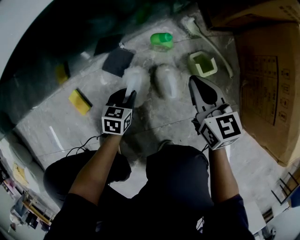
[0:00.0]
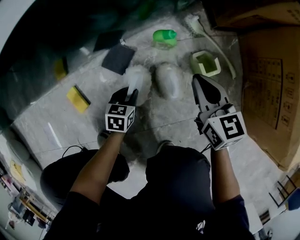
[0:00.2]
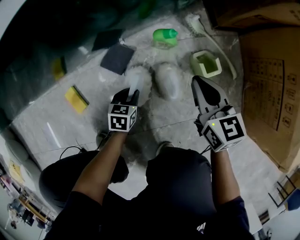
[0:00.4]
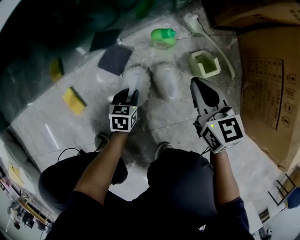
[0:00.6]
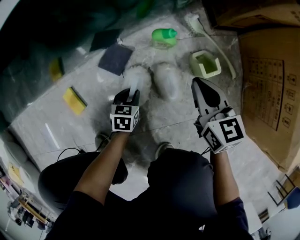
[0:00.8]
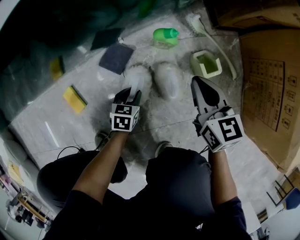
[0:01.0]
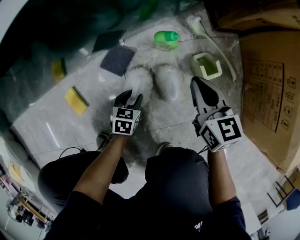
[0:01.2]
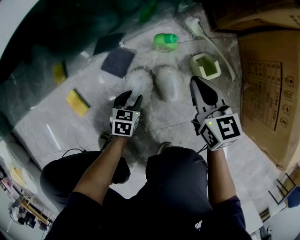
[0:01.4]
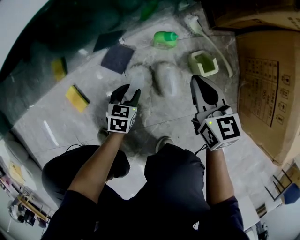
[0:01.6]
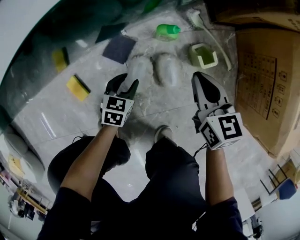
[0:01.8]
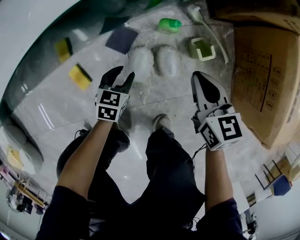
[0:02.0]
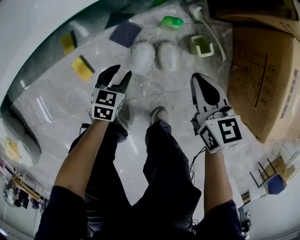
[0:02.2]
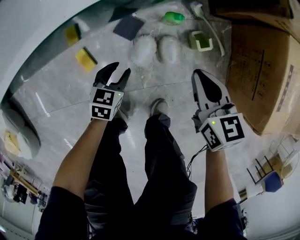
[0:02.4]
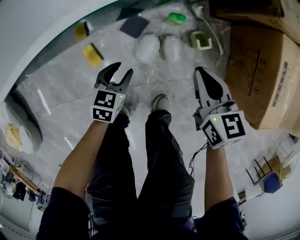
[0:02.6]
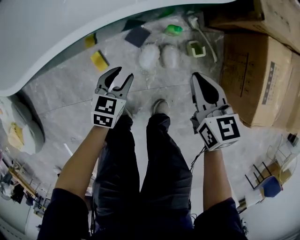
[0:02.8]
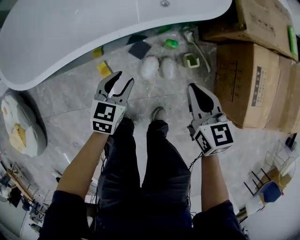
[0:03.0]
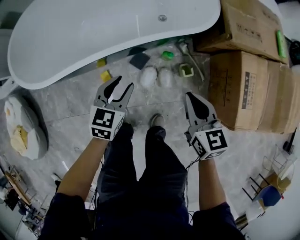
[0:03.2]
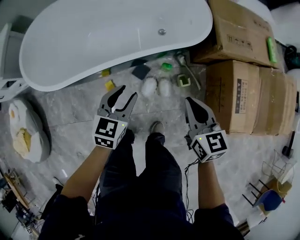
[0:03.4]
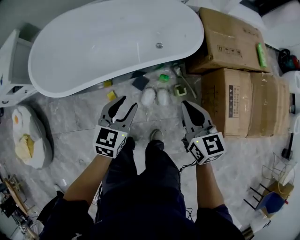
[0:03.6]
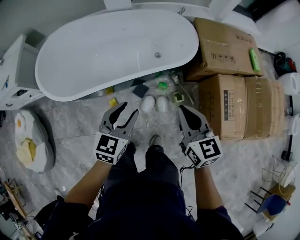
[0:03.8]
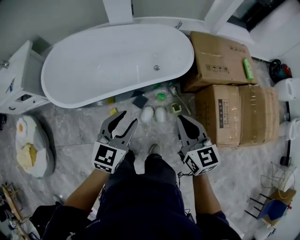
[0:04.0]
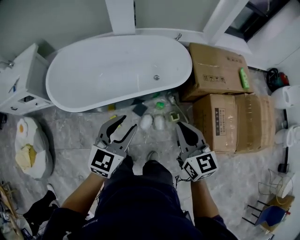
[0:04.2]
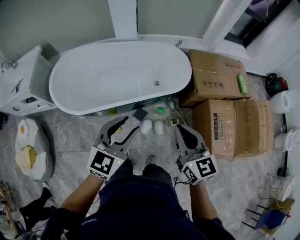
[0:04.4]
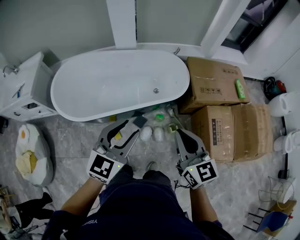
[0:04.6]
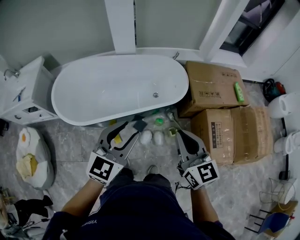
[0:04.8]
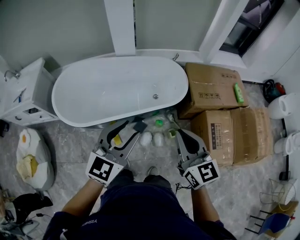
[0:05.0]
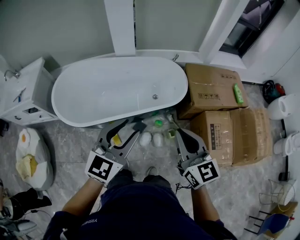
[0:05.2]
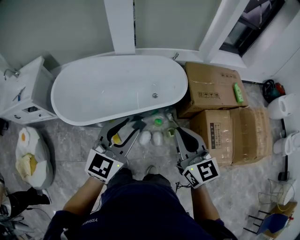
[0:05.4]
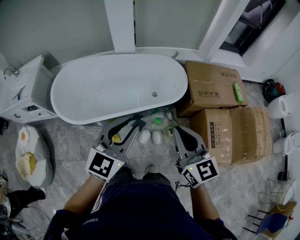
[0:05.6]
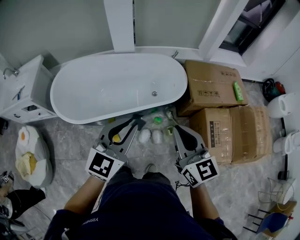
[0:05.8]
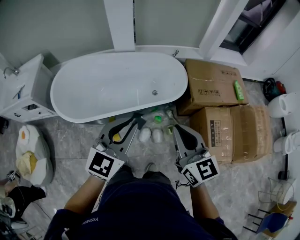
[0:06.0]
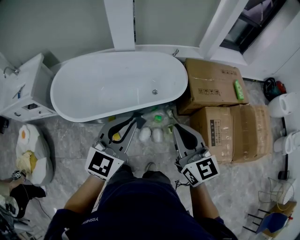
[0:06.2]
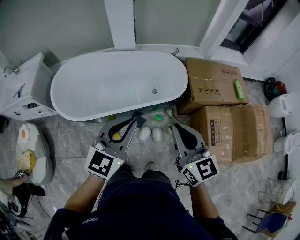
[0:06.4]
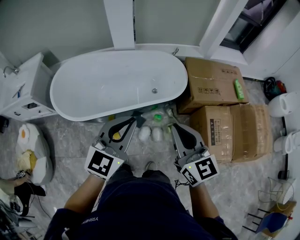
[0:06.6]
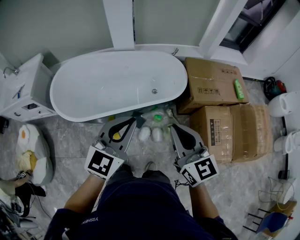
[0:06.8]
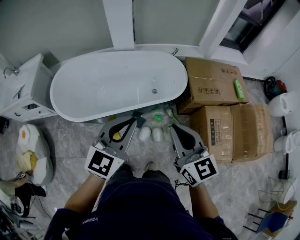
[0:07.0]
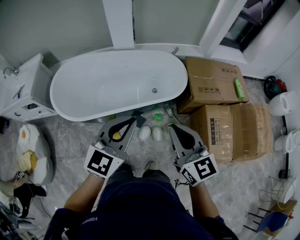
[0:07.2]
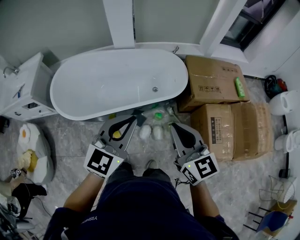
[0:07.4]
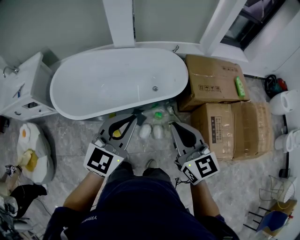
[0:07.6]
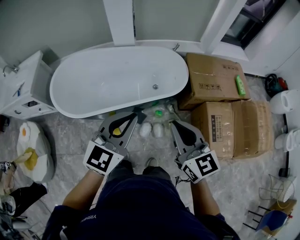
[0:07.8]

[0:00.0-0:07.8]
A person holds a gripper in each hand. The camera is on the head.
0:01.6 to 0:03.2: The grippers both shift upward by roughly 50 cm.
0:03.2 to 0:04.6: Both grippers travel together upward, approximately 40 cm. The left gripper rotates some 30 degrees. Meanwhile the right gripper swivels about 20 degrees.
0:04.6 to 0:06.2: The left gripper closes.
0:06.2 to 0:07.8: The two grippers keep their place.

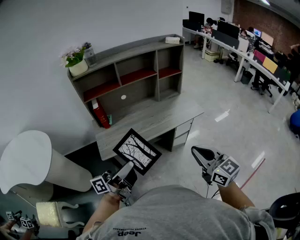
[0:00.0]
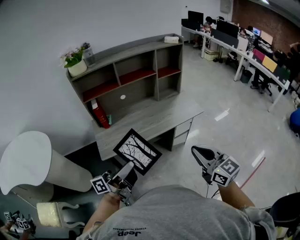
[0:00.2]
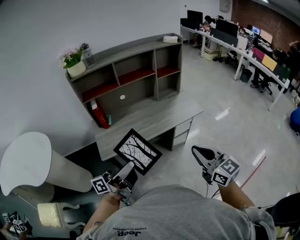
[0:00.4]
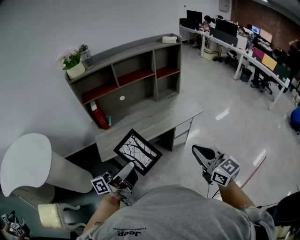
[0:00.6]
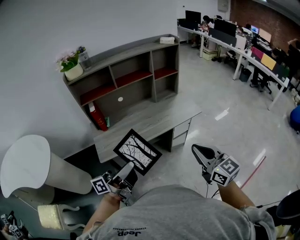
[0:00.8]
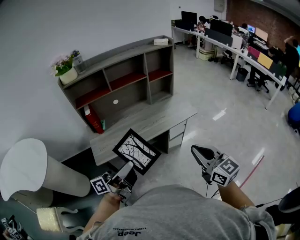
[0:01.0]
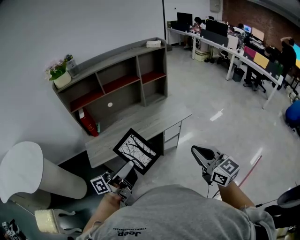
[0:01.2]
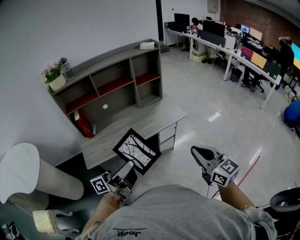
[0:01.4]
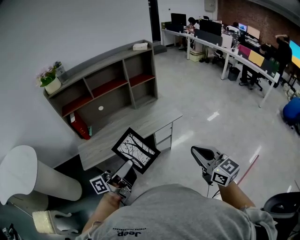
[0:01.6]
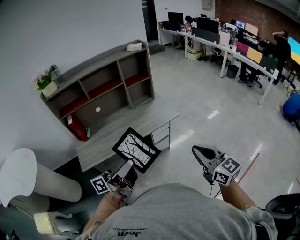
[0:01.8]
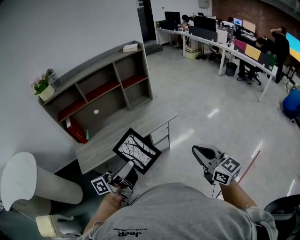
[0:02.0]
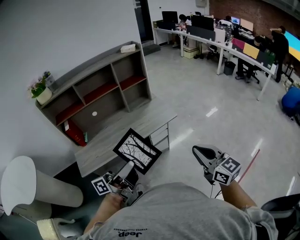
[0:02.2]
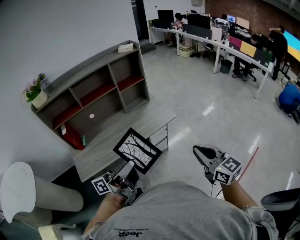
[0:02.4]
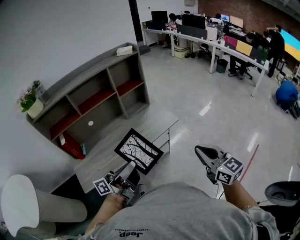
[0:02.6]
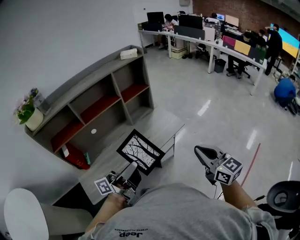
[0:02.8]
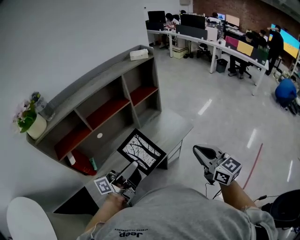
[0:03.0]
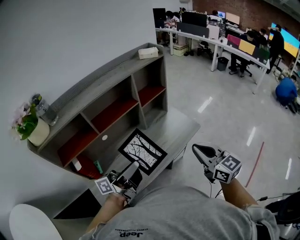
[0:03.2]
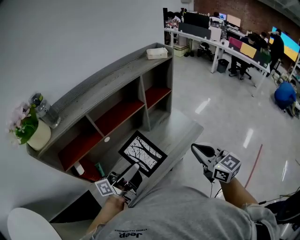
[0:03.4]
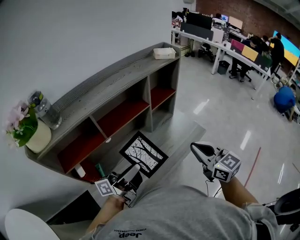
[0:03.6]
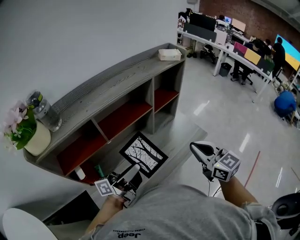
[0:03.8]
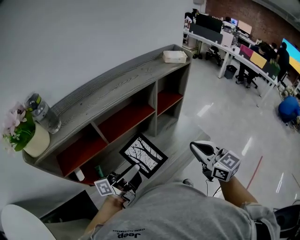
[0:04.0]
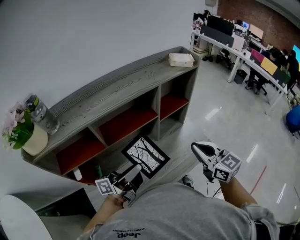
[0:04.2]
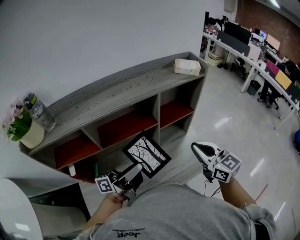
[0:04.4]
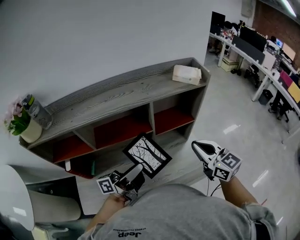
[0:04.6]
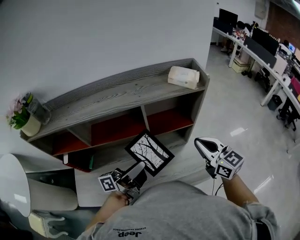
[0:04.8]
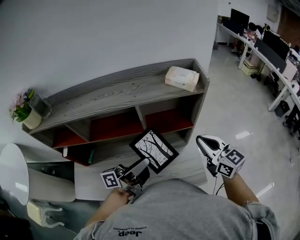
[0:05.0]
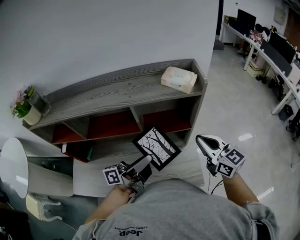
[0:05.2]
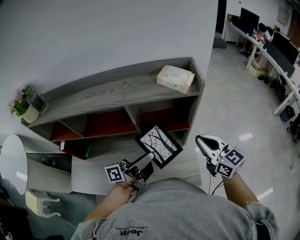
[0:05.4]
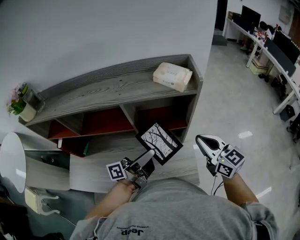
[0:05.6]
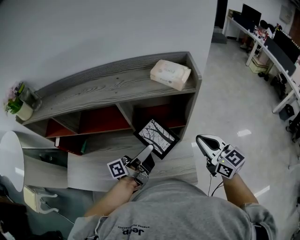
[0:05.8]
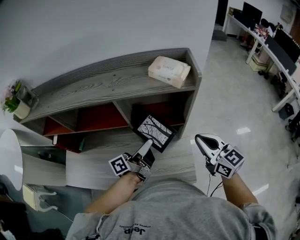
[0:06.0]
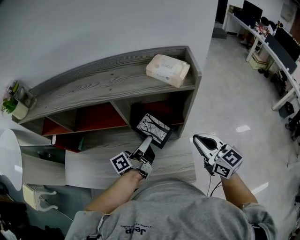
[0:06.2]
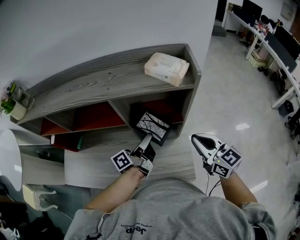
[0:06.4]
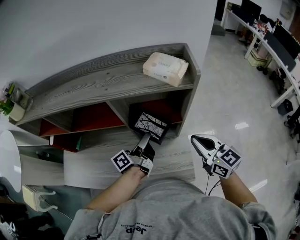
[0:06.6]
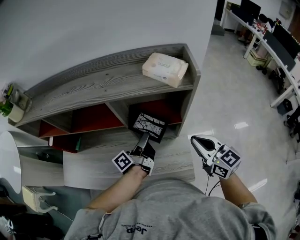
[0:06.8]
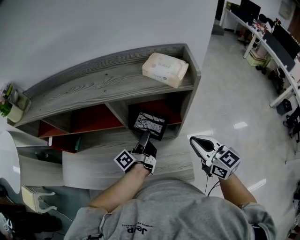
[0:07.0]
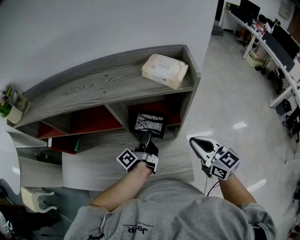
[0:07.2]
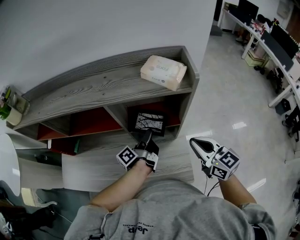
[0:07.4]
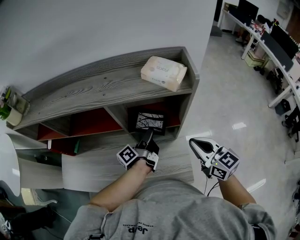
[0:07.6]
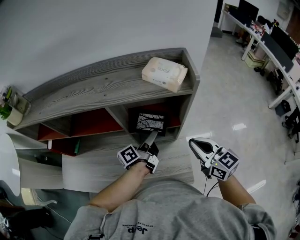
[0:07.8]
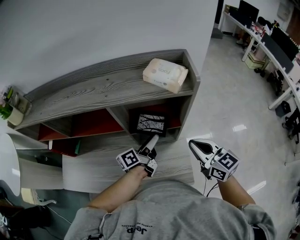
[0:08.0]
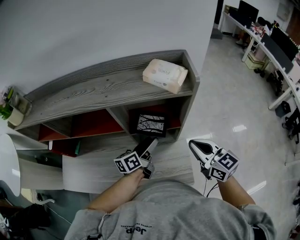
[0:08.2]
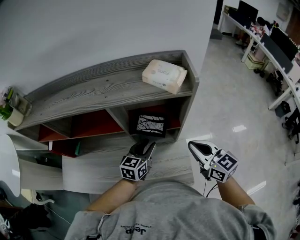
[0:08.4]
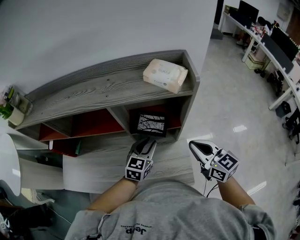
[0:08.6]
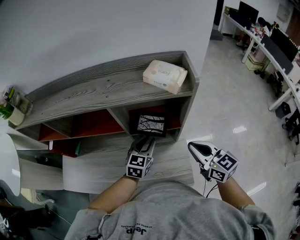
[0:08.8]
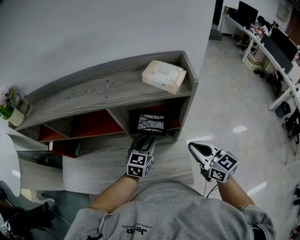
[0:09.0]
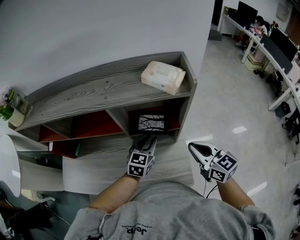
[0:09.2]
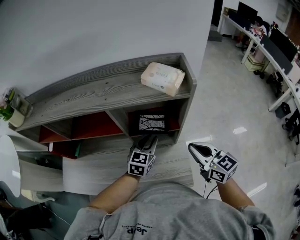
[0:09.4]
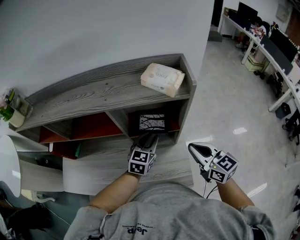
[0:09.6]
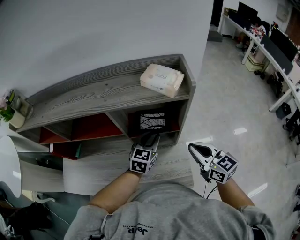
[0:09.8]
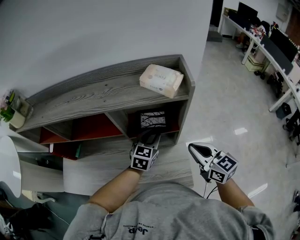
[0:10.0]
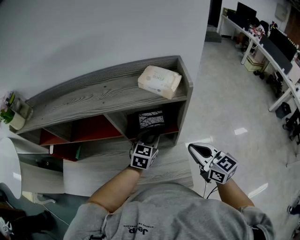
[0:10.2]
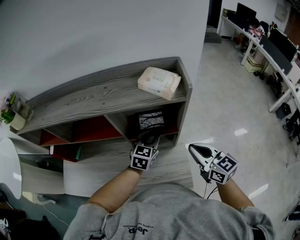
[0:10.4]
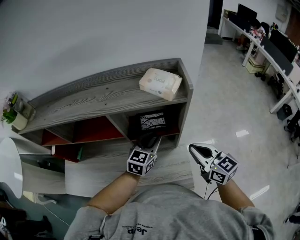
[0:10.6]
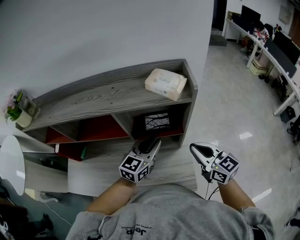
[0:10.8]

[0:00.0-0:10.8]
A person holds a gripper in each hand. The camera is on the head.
0:00.0 to 0:01.6: The two grippers go roughly 20 cm to the right.
0:01.6 to 0:03.0: The grippers both shift forward and to the left by approximately 25 cm.
0:03.0 to 0:04.6: Both grippers travel together forward, approximately 30 cm. The right gripper turns by some 20 degrees.
0:04.6 to 0:06.2: Both grippers move to the right, forward and downward, about 20 cm. The left gripper turns by about 30 degrees.
0:06.2 to 0:07.8: The left gripper shifts by approximately 5 cm, and opens.
0:07.8 to 0:09.2: The left gripper rolls clockwise, seen from behind, by roughly 80 degrees, and closes.
0:09.2 to 0:10.8: The left gripper goes roughly 10 cm upward.

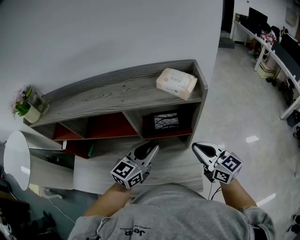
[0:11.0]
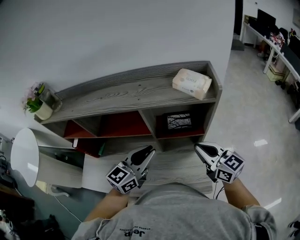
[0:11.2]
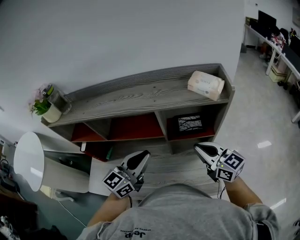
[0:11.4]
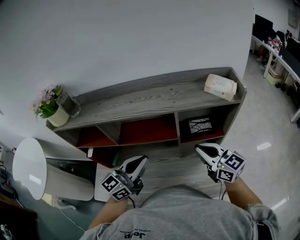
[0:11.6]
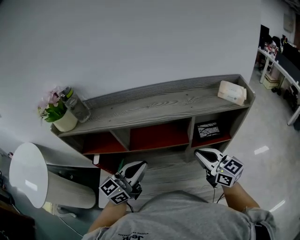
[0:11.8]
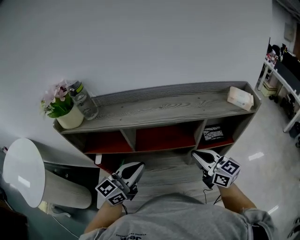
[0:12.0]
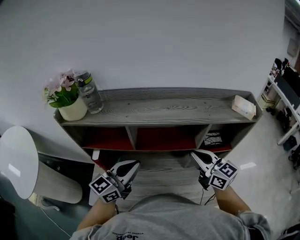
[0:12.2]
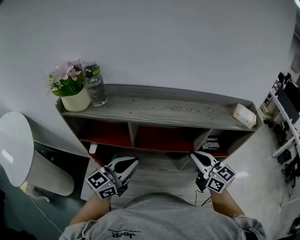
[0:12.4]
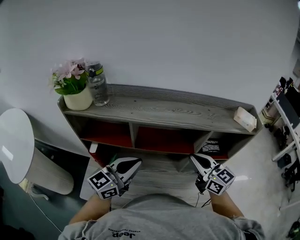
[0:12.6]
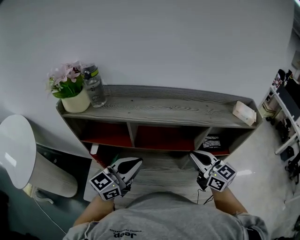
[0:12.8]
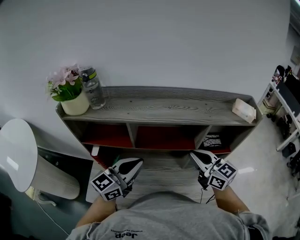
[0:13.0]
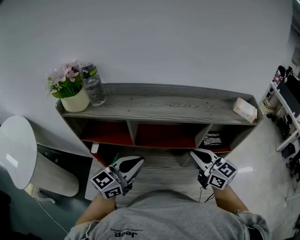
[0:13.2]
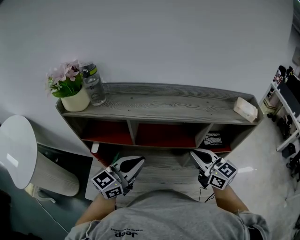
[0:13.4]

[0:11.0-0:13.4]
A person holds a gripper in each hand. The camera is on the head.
0:11.0 to 0:12.2: Both grippers travel together to the left, about 30 cm.
0:12.2 to 0:13.4: The grippers make only small movements.

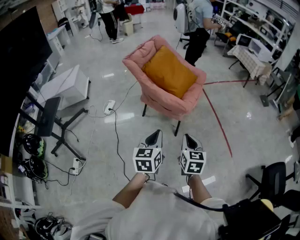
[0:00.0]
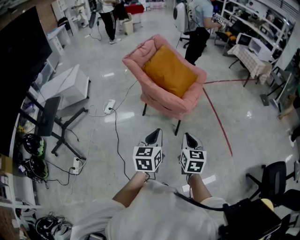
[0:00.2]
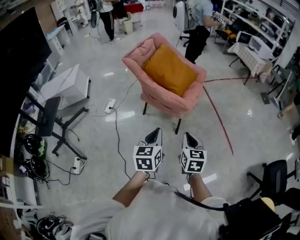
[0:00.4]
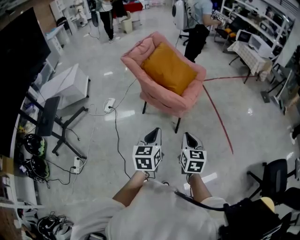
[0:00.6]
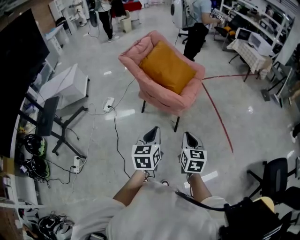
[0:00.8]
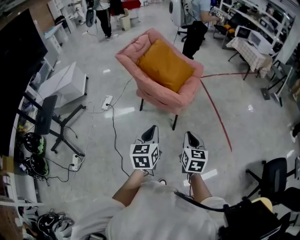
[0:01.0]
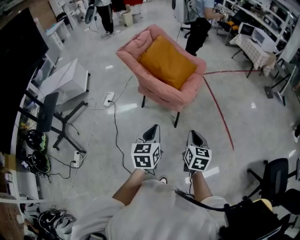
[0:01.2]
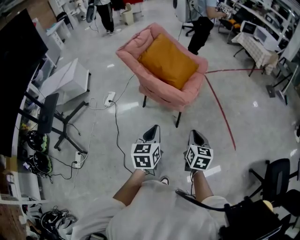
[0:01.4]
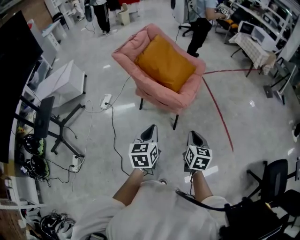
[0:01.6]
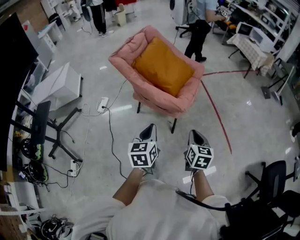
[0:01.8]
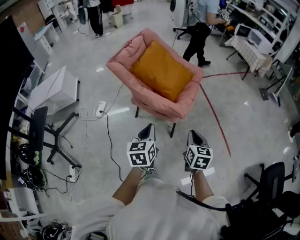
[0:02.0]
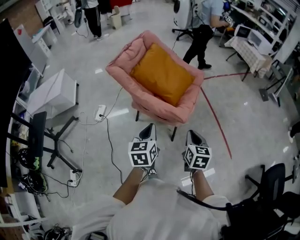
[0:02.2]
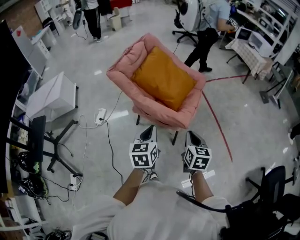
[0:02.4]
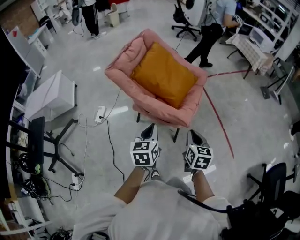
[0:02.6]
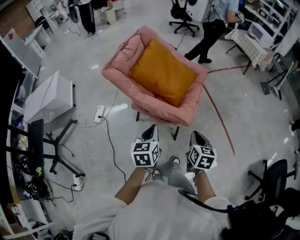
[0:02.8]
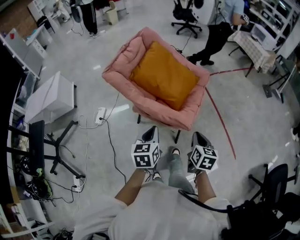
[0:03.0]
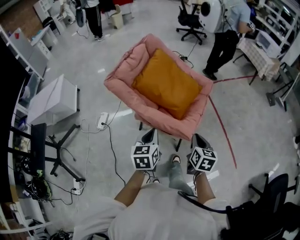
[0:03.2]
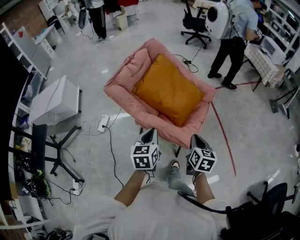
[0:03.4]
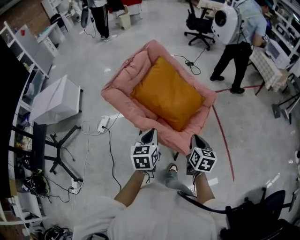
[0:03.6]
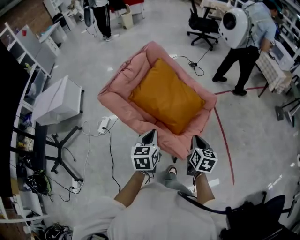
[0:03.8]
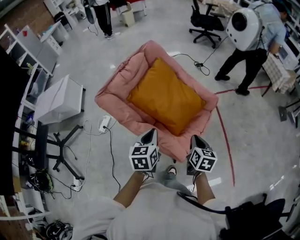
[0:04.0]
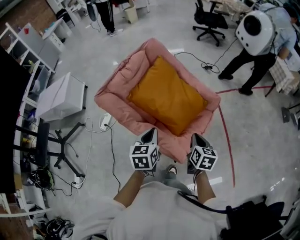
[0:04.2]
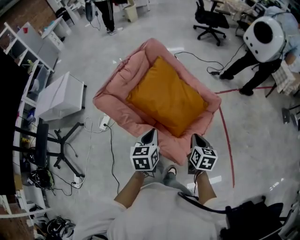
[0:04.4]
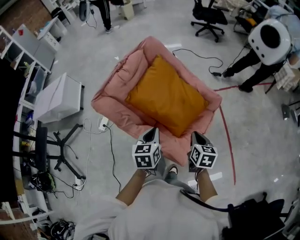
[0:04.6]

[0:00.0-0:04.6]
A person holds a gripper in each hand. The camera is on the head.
0:00.0 to 0:01.6: The right gripper moves to the right and forward, some 10 cm. The left gripper shifts approximately 5 cm forward.
0:01.6 to 0:03.0: Both grippers travel together forward, some 20 cm.
0:03.0 to 0:04.6: Both grippers travel together forward, about 25 cm.
